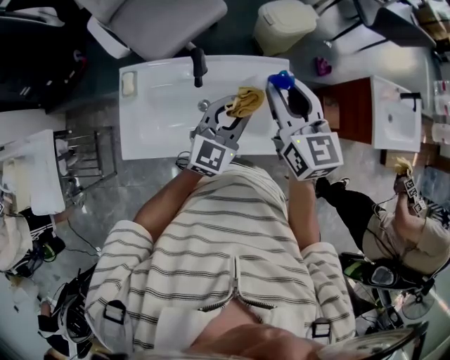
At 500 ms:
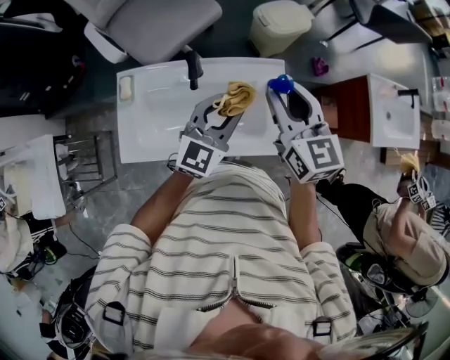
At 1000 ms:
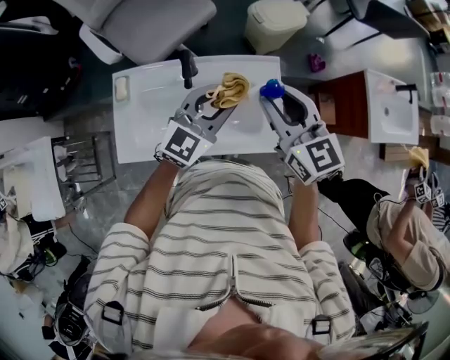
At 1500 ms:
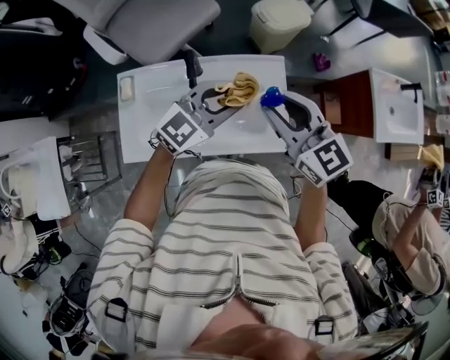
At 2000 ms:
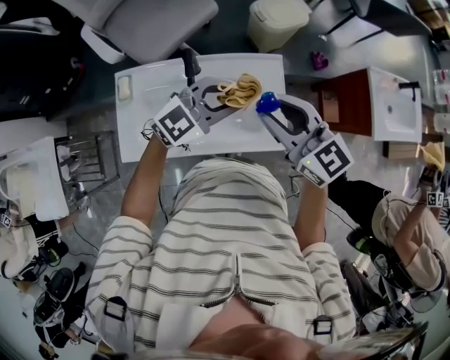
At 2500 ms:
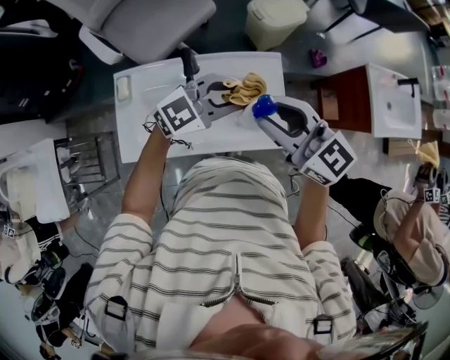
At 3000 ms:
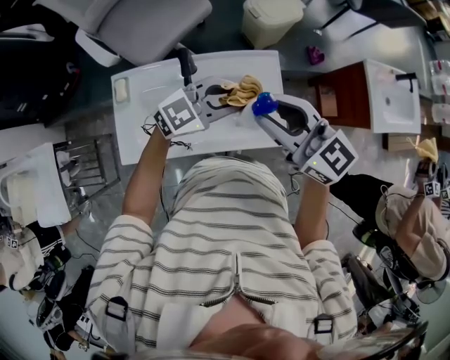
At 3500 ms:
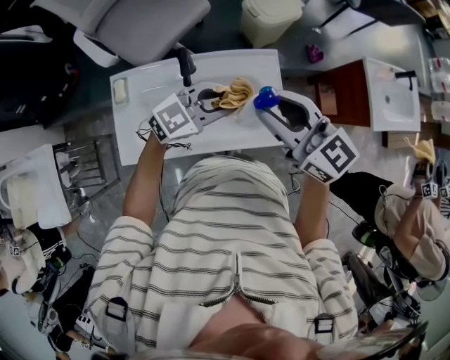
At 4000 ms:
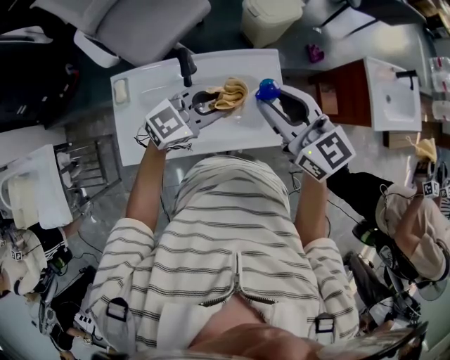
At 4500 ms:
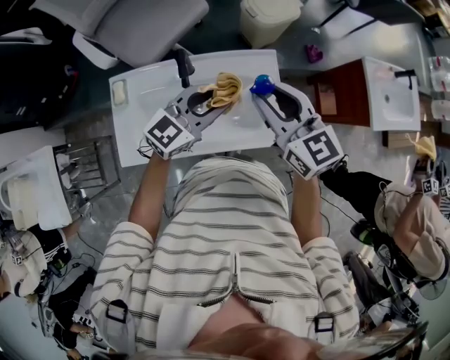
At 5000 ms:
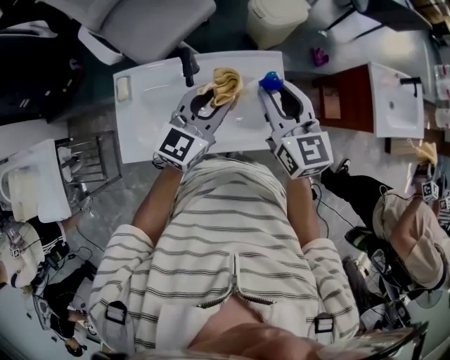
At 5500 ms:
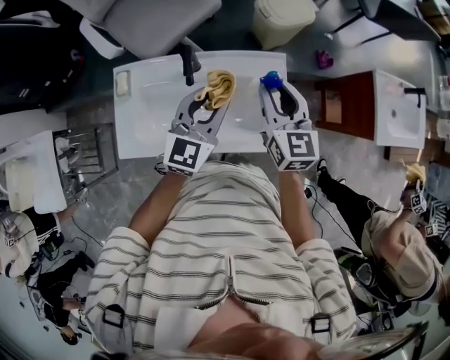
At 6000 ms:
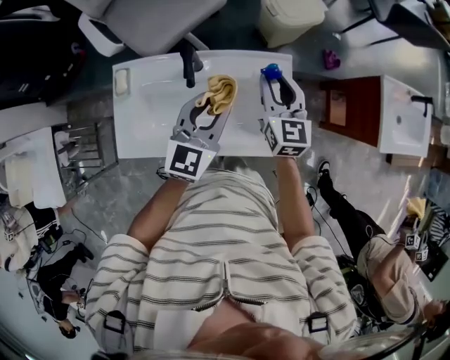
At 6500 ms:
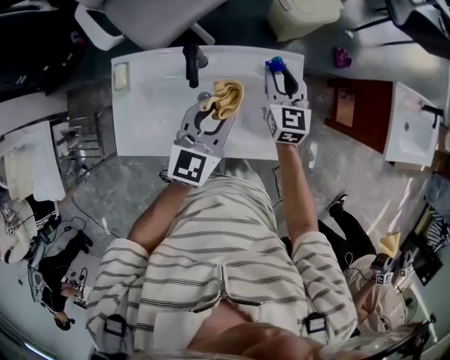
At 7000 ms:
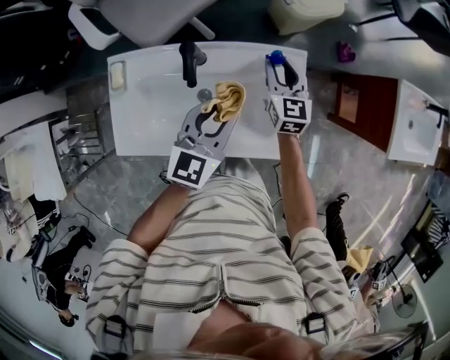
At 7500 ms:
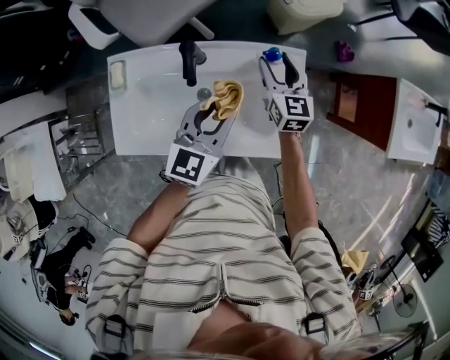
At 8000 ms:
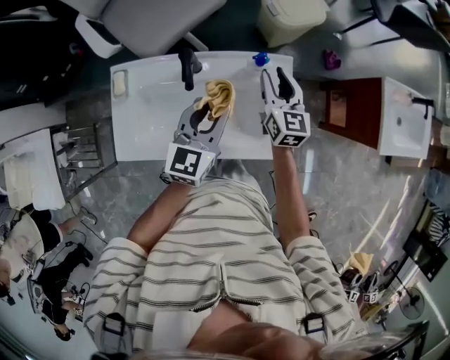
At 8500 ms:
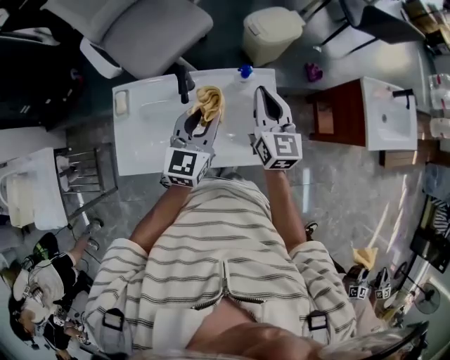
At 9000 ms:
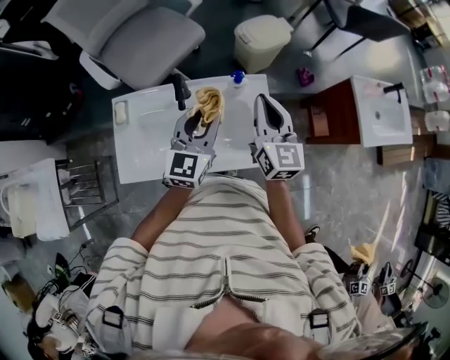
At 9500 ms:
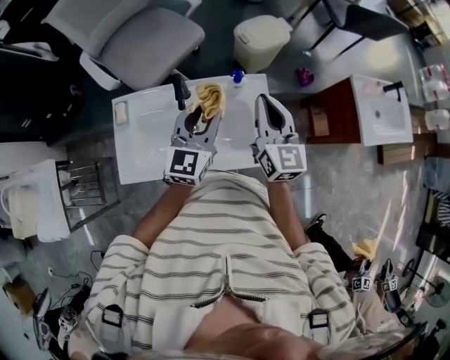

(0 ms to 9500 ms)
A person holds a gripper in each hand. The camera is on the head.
0 ms - 2000 ms: The left gripper turns by some 30 degrees, while the right gripper is displaced backward by about 5 cm, and changes its angle by roughly 20 degrees.
2000 ms - 4000 ms: The grippers make only small movements.
4000 ms - 5500 ms: The right gripper moves downward and forward, about 10 cm, and turns by some 20 degrees; the left gripper ends up some 5 cm from where it was, and swivels about 40 degrees.
5500 ms - 7500 ms: The left gripper goes roughly 5 cm downward, while the right gripper goes some 20 cm downward and forward, and opens its fingers.
7500 ms - 9500 ms: The left gripper heads upward, covering roughly 10 cm. The right gripper shifts some 25 cm upward and backward, and closes its fingers.

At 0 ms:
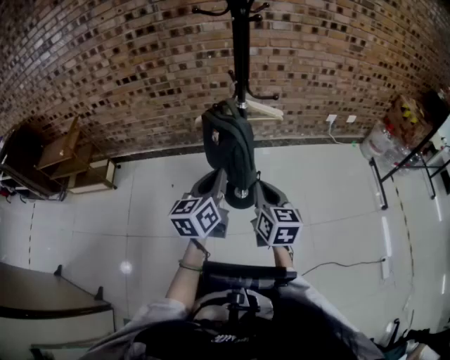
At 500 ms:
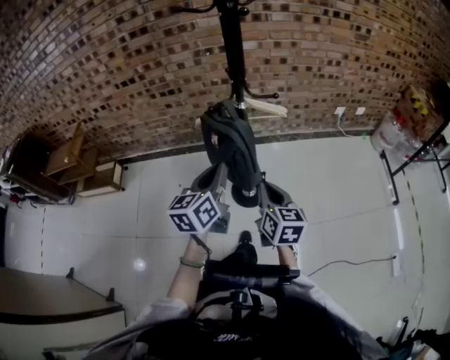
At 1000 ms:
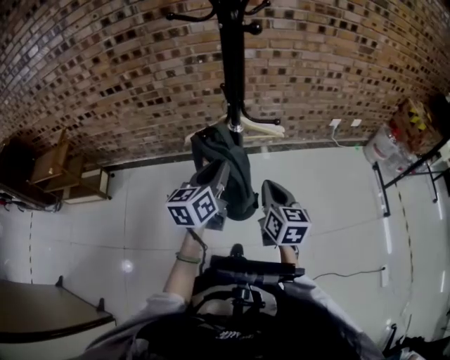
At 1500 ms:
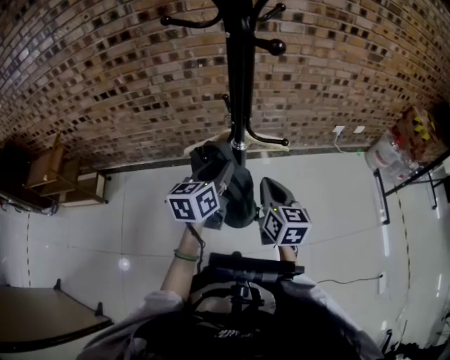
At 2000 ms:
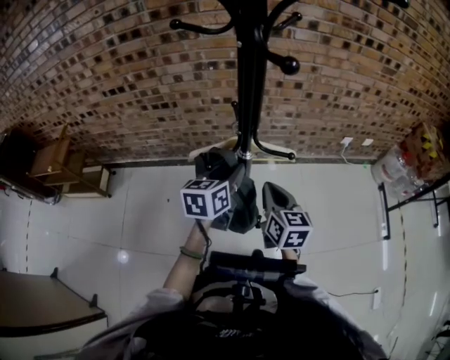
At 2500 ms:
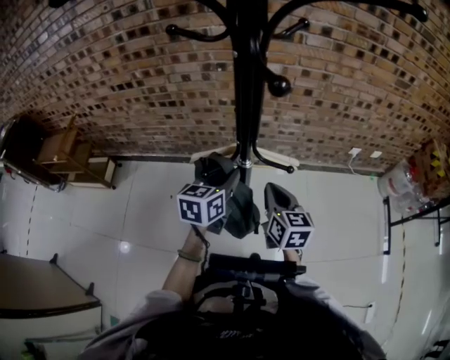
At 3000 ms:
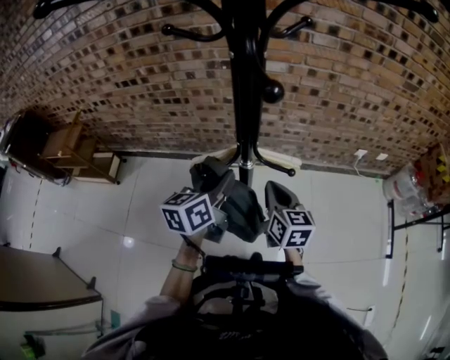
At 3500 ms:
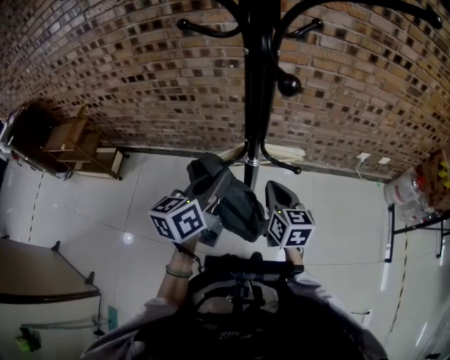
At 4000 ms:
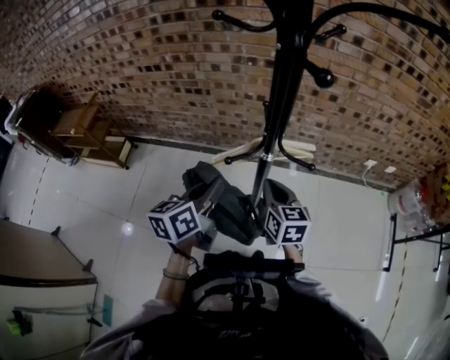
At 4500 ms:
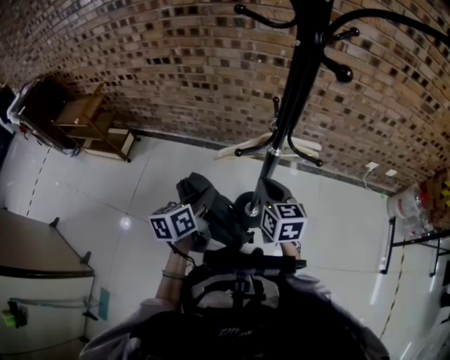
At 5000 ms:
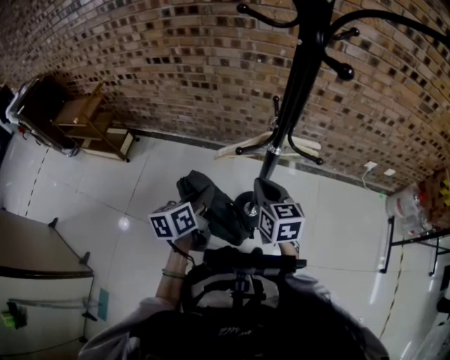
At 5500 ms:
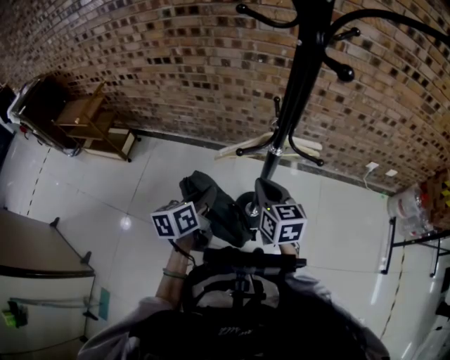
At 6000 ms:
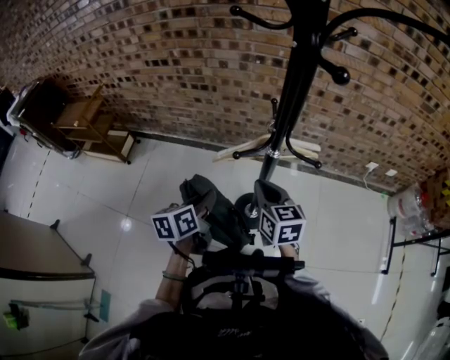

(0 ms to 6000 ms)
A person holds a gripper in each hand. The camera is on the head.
0 ms - 2000 ms: Both grippers move forward, approximately 30 cm. The left gripper opens its fingers.
2000 ms - 4000 ms: The left gripper heads to the left and backward, covering about 10 cm, and closes up.
4000 ms - 6000 ms: The left gripper shifts about 10 cm downward and to the left; the right gripper goes some 5 cm to the left.

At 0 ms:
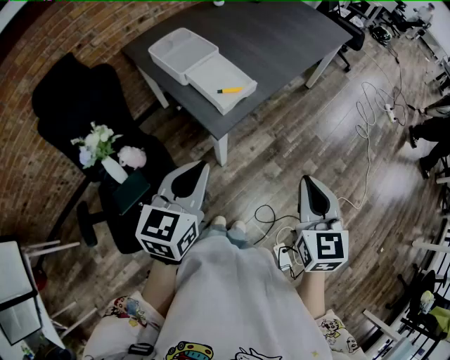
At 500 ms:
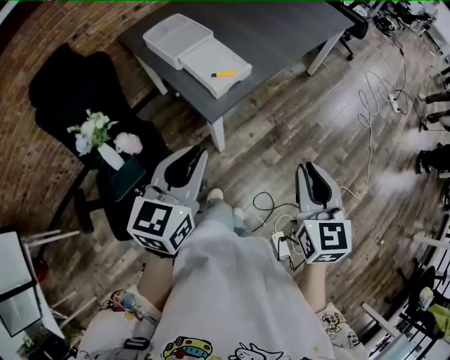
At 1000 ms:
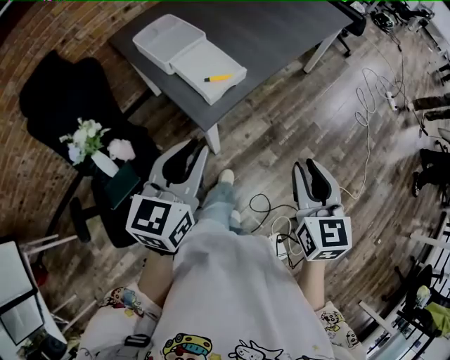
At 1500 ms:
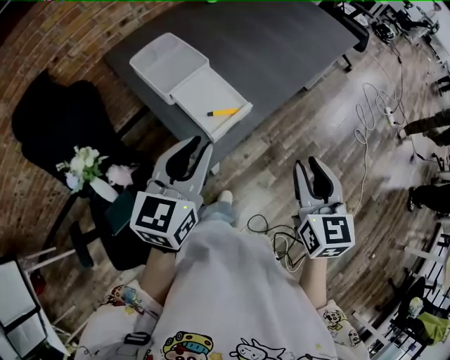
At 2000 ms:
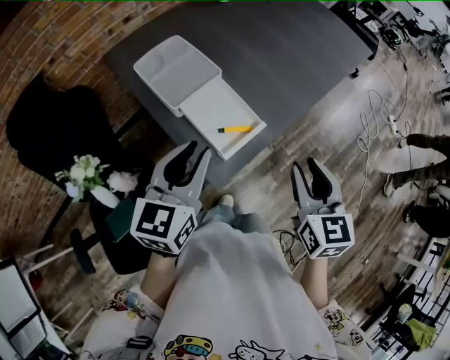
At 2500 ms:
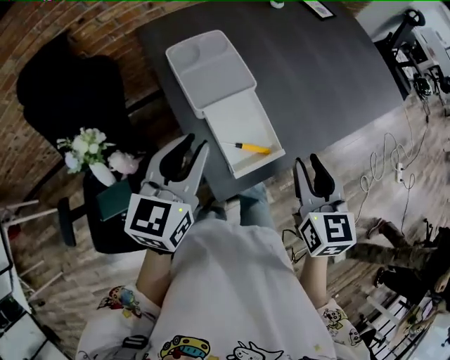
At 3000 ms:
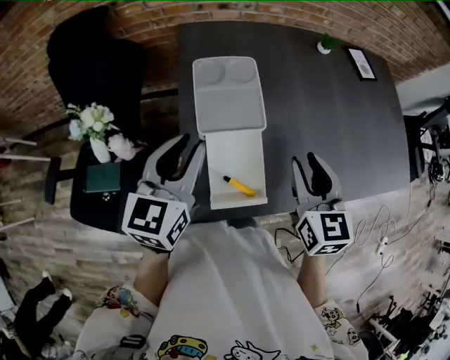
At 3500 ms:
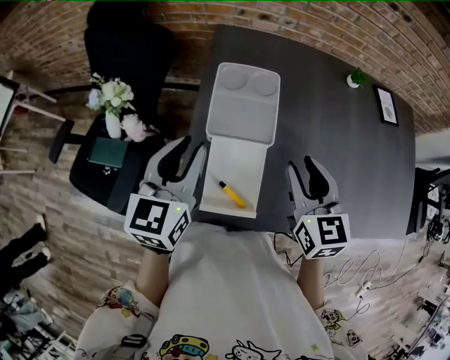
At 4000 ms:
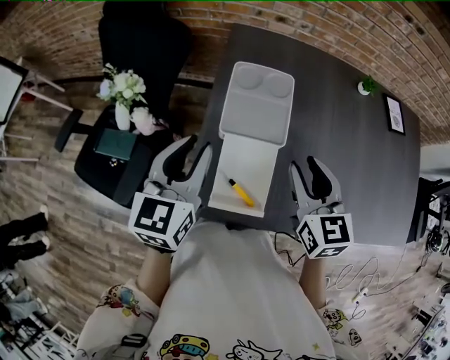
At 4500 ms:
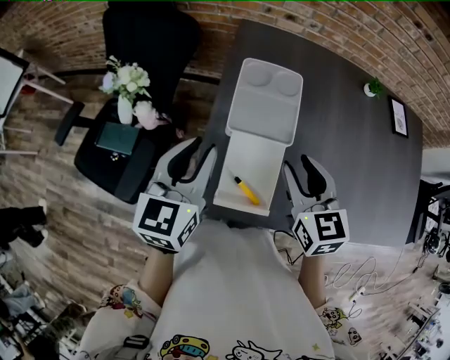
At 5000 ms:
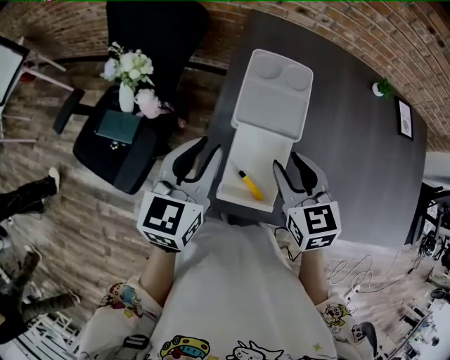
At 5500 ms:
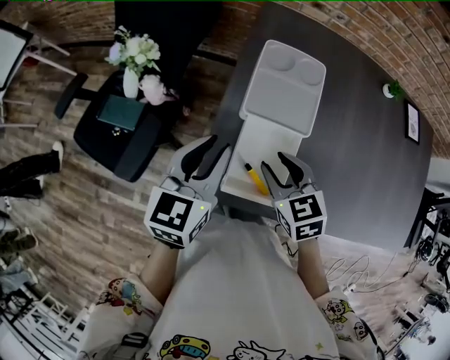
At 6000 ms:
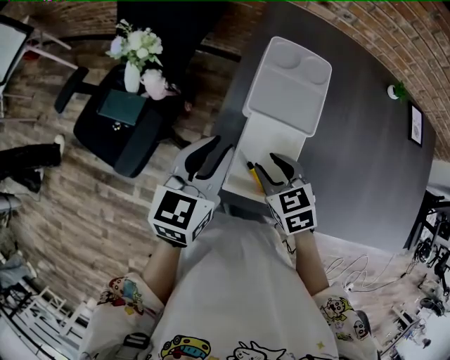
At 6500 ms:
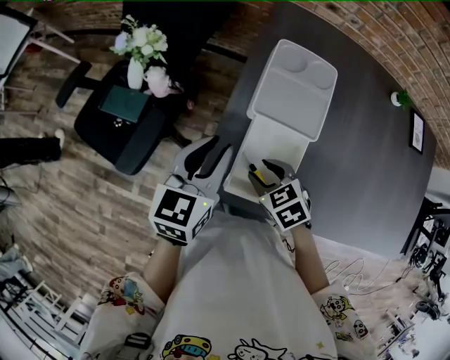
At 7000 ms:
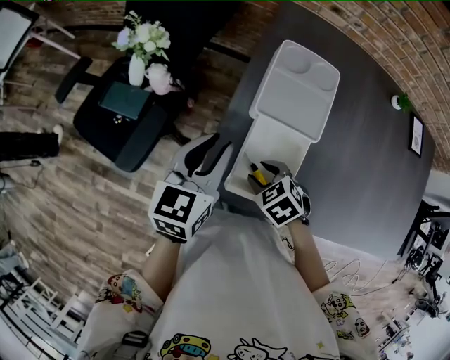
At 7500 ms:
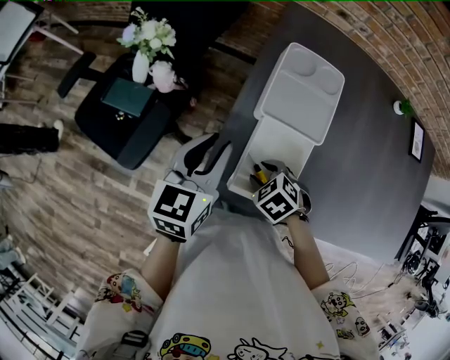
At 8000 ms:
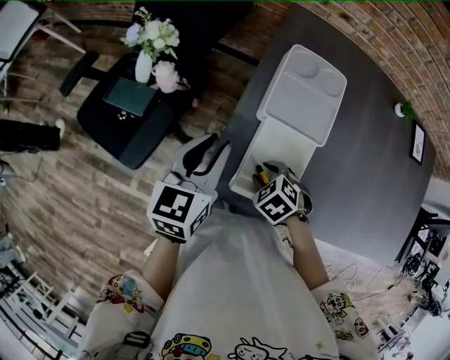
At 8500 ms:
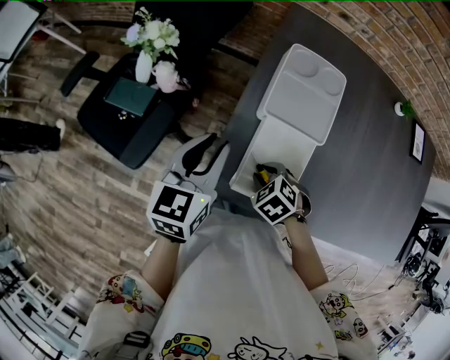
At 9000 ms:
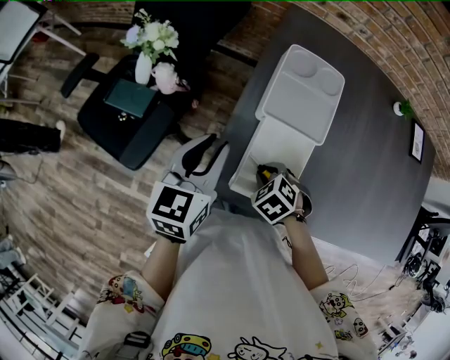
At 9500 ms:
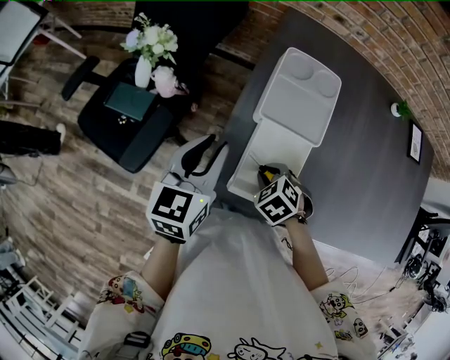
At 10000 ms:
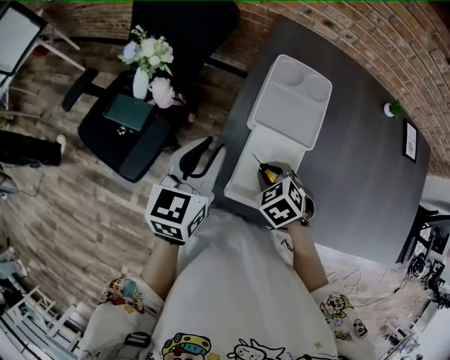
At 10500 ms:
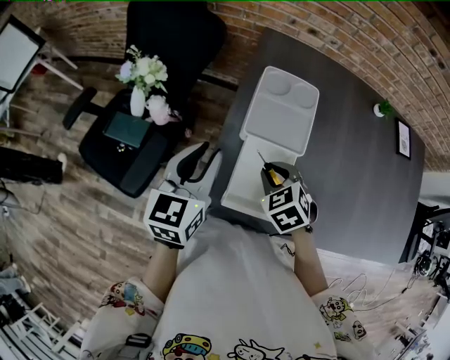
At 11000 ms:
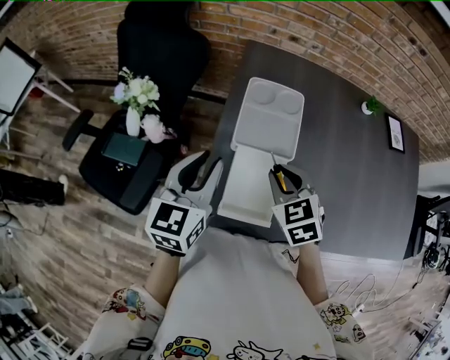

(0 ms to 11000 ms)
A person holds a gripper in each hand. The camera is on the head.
0 ms - 2000 ms: The two grippers go roughly 25 cm forward. The left gripper opens up, while the right gripper opens its fingers.
2000 ms - 3500 ms: The left gripper ends up some 10 cm from where it was, and swivels some 50 degrees. The right gripper moves roughly 30 cm, and rotates approximately 50 degrees.
3500 ms - 5500 ms: The left gripper shifts approximately 5 cm downward. Meanwhile the right gripper travels to the left and downward by about 15 cm, and turns by roughly 30 degrees.
5500 ms - 7500 ms: The right gripper moves downward, roughly 10 cm, and points its fingers approximately 30 degrees further downward.
7500 ms - 9000 ms: The right gripper closes.
9000 ms - 11000 ms: The right gripper moves upward, some 15 cm, and tips its fingers upward by approximately 30 degrees. Meanwhile the left gripper travels upward by about 5 cm.
